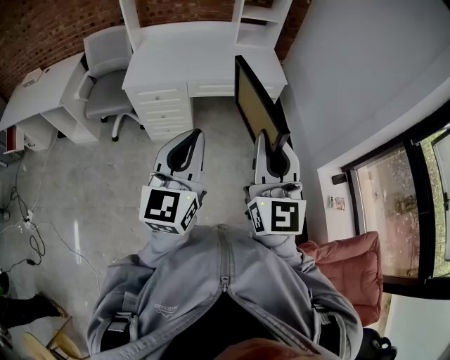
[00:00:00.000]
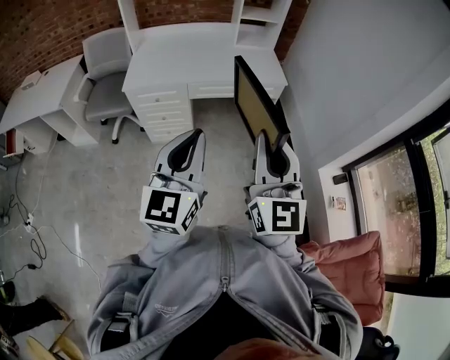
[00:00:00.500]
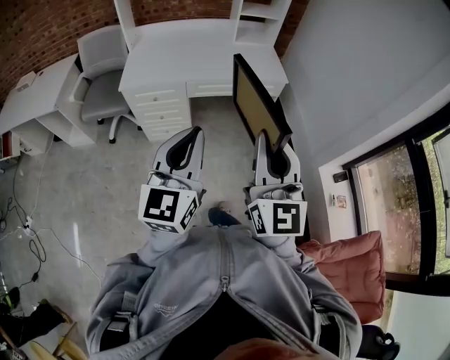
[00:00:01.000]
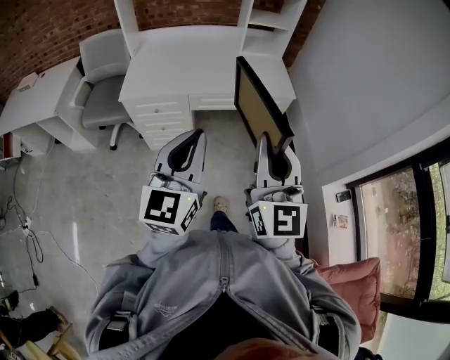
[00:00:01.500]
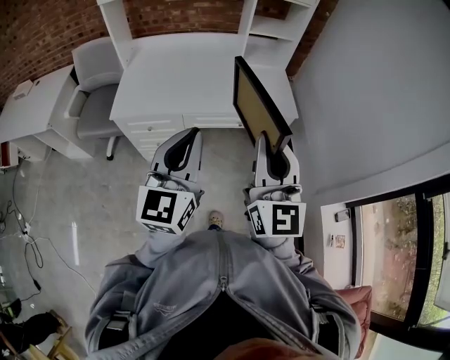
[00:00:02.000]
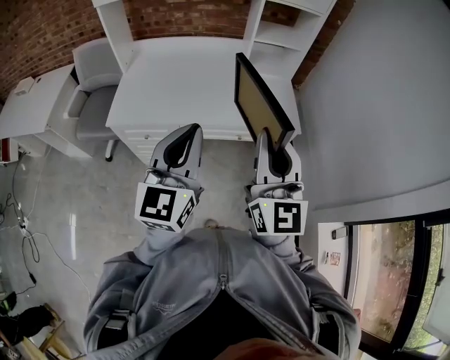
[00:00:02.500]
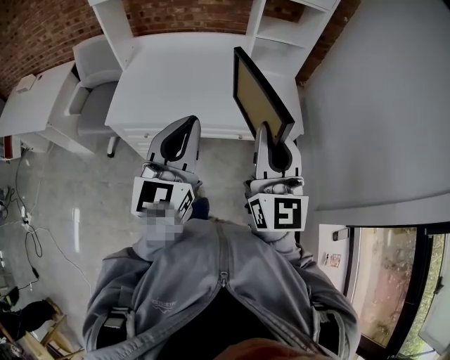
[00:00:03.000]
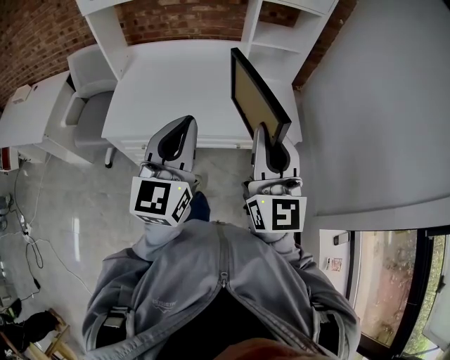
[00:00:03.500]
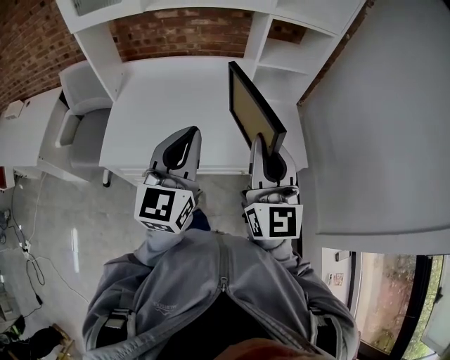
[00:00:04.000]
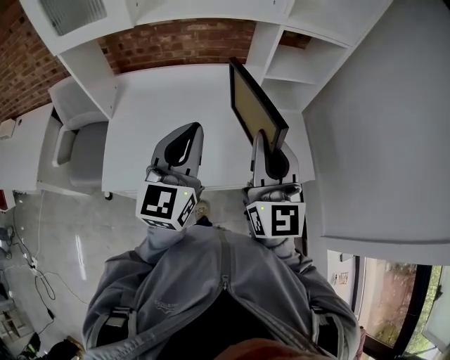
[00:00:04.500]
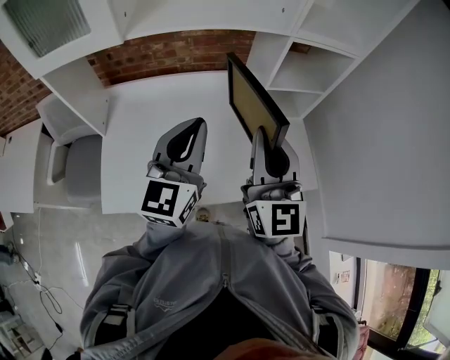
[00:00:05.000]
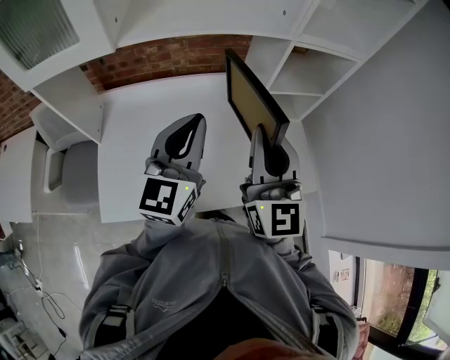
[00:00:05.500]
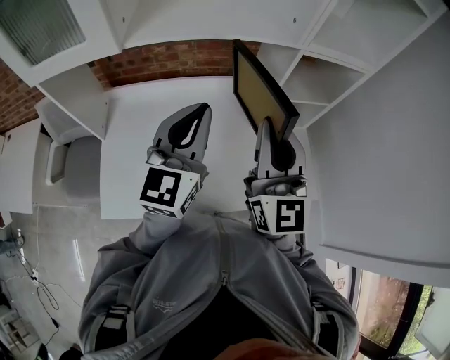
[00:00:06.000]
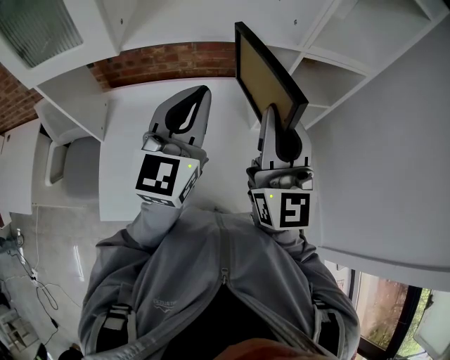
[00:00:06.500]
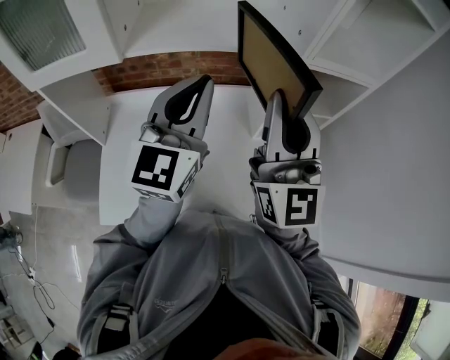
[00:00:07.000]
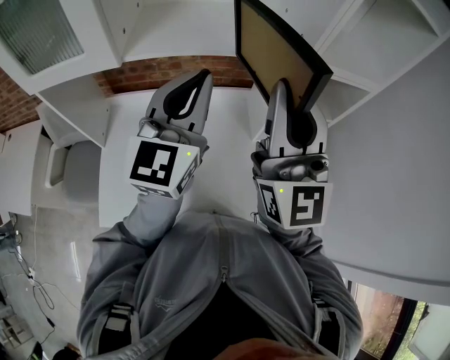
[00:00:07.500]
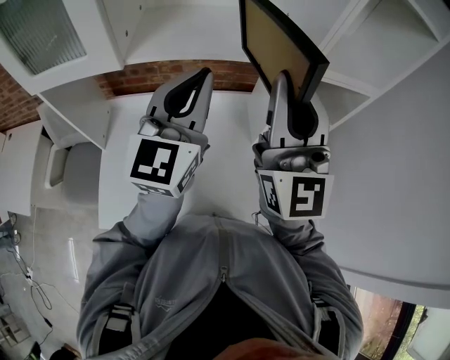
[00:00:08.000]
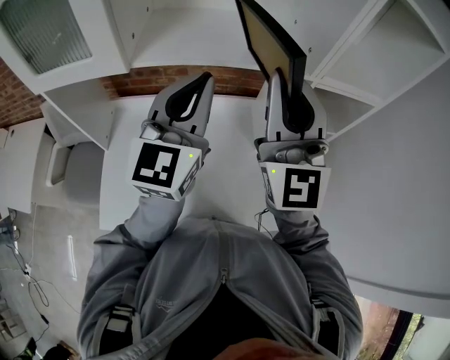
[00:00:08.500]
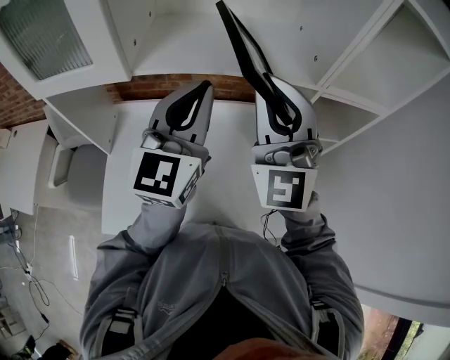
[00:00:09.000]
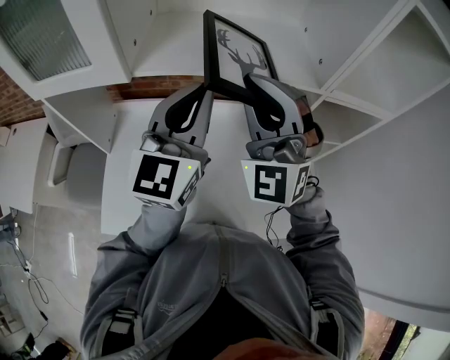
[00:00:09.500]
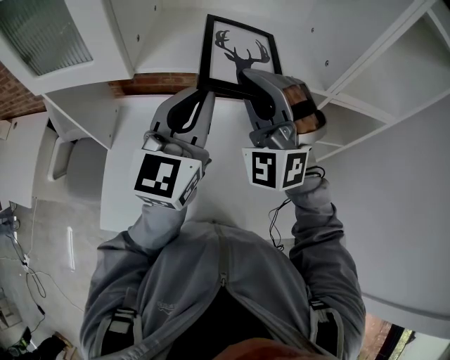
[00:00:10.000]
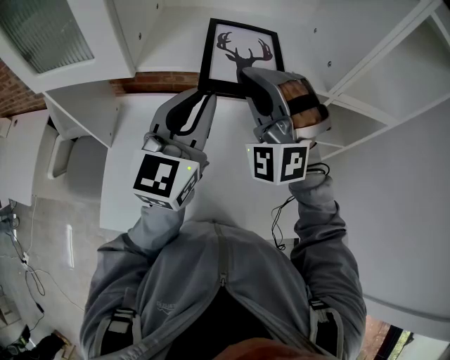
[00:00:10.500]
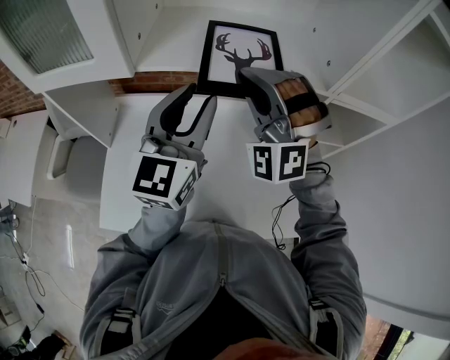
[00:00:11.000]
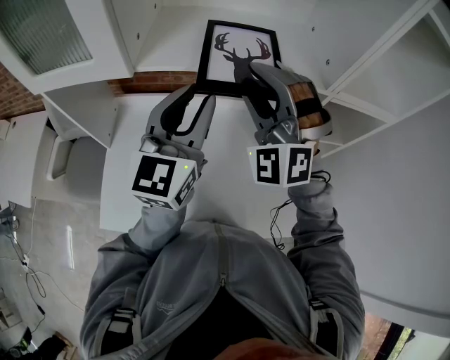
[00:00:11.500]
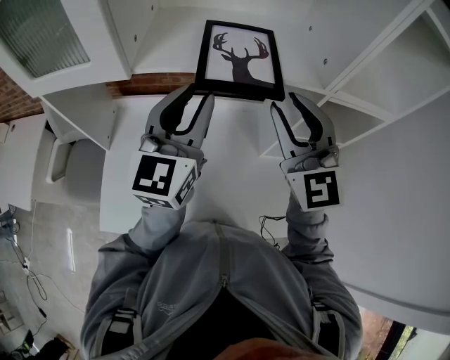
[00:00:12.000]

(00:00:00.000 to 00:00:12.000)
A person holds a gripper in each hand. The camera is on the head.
00:00:00.000 - 00:00:02.000: The grippers both shift forward by roughly 25 cm.
00:00:02.000 - 00:00:04.000: The two grippers go roughly 25 cm forward.
00:00:04.000 - 00:00:06.000: The grippers both shift forward by some 25 cm.
00:00:06.000 - 00:00:08.000: The grippers both shift upward and forward by roughly 10 cm.
00:00:08.000 - 00:00:10.000: The right gripper moves forward, downward and to the left, approximately 15 cm, and twists roughly 50 degrees counterclockwise, seen from behind, while the left gripper ends up approximately 5 cm from where it was.
00:00:10.000 - 00:00:12.000: The left gripper opens its fingers; the right gripper heads to the right, covering approximately 5 cm, twists approximately 50 degrees clockwise, seen from behind, and opens up.

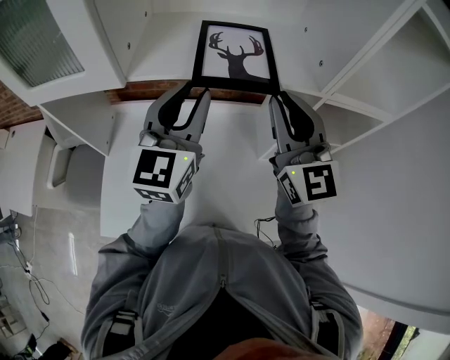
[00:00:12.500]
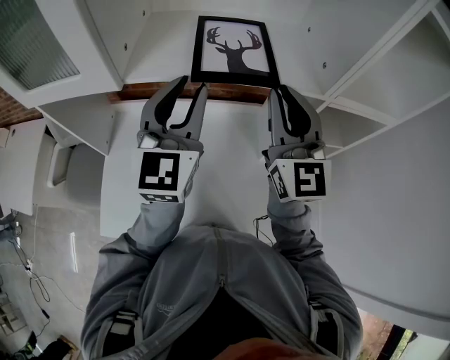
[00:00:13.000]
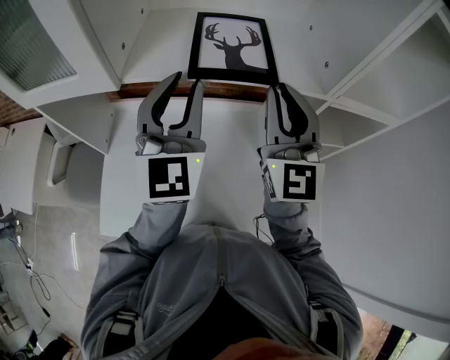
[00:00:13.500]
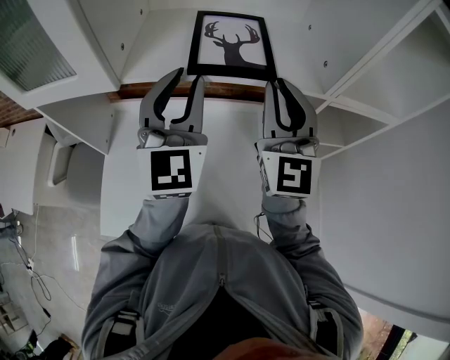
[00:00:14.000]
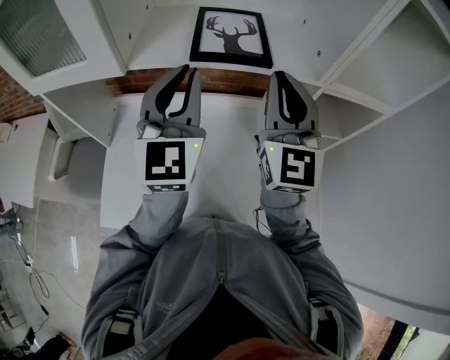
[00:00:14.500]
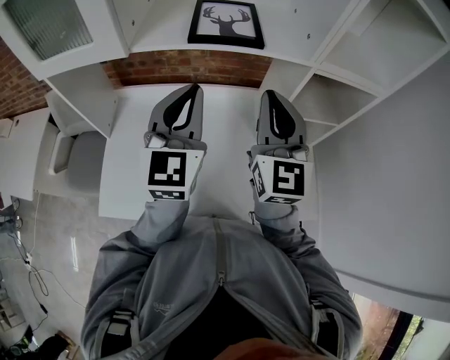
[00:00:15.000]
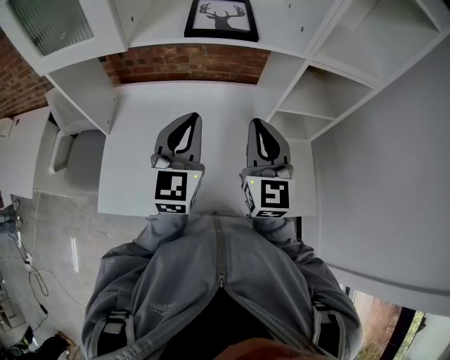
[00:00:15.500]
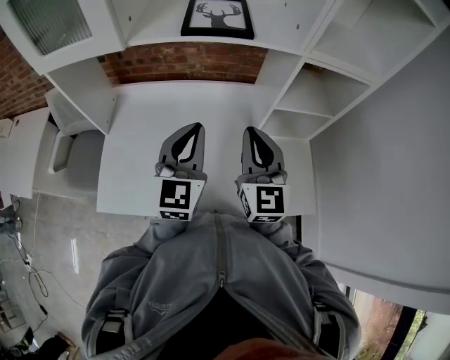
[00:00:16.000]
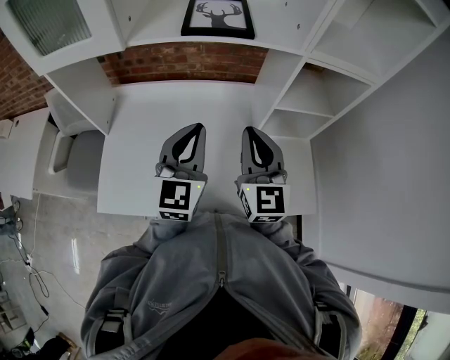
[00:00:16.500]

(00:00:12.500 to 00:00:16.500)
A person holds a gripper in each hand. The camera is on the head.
00:00:12.500 - 00:00:14.500: The grippers make only small movements.
00:00:14.500 - 00:00:16.500: Both grippers travel together downward and backward, approximately 20 cm.

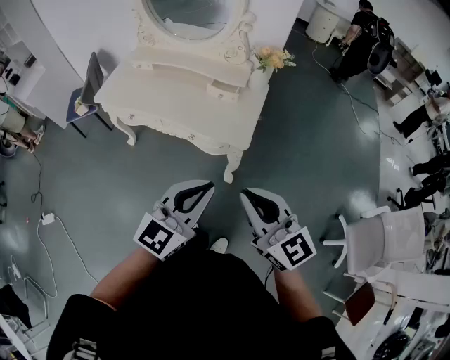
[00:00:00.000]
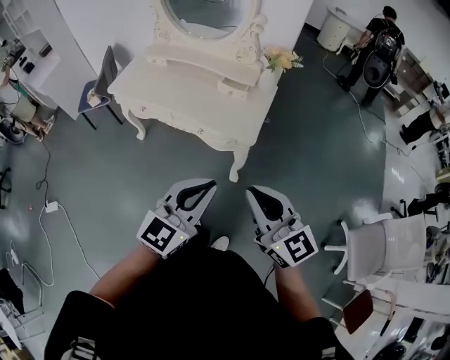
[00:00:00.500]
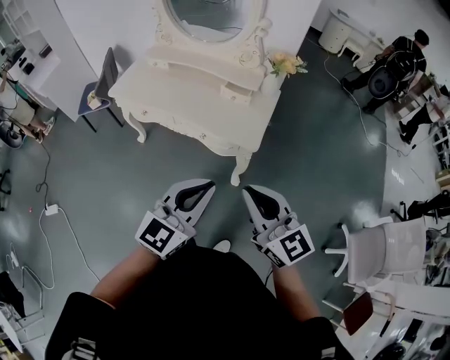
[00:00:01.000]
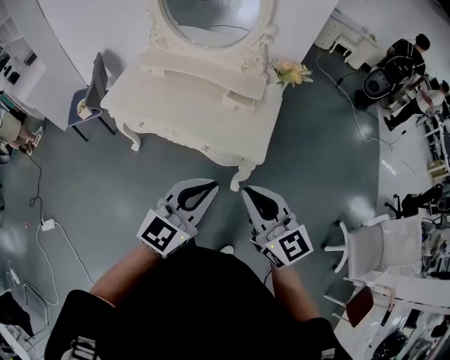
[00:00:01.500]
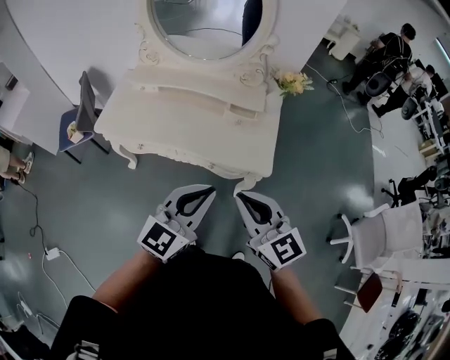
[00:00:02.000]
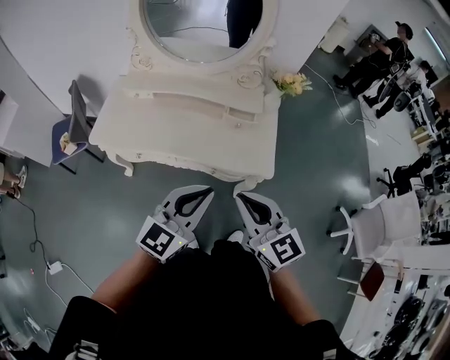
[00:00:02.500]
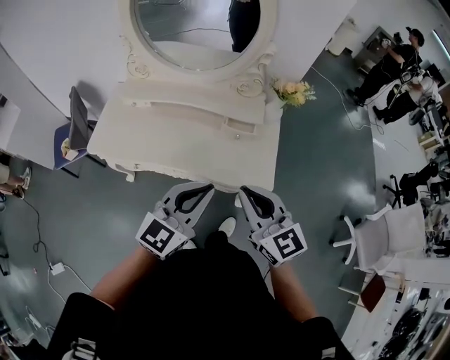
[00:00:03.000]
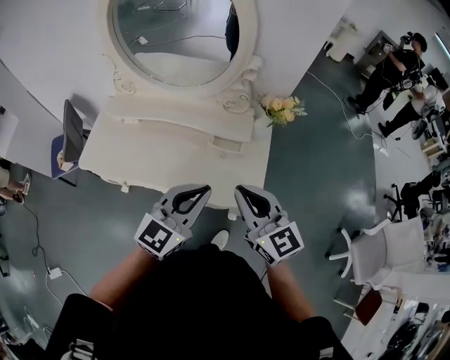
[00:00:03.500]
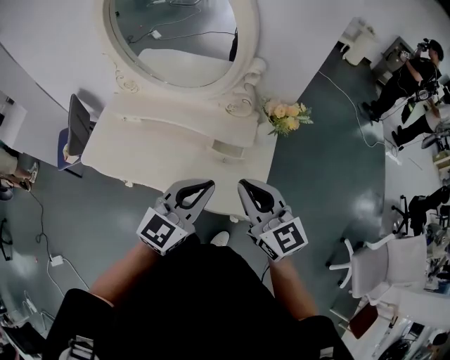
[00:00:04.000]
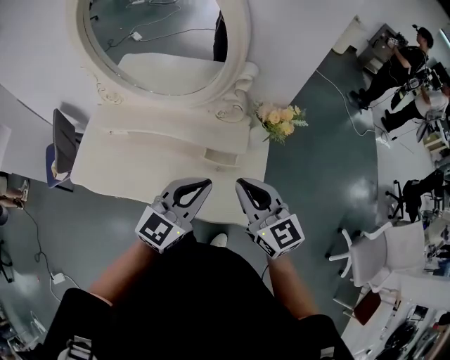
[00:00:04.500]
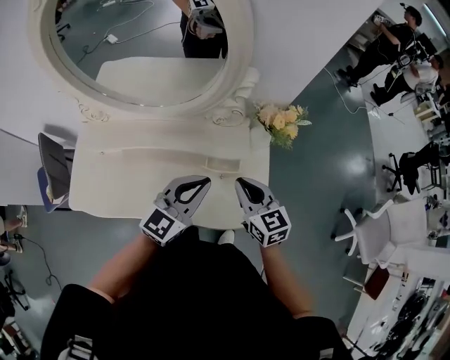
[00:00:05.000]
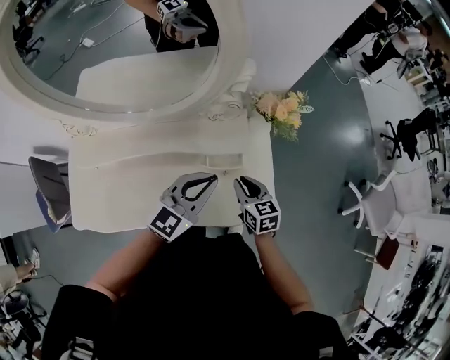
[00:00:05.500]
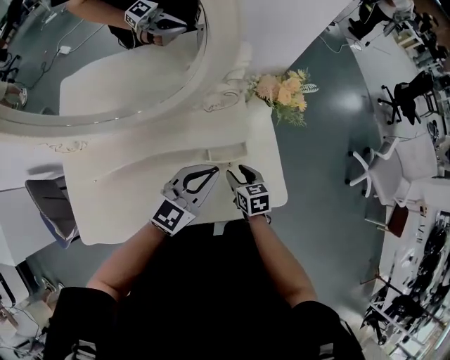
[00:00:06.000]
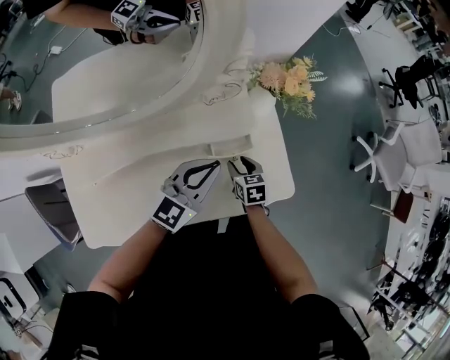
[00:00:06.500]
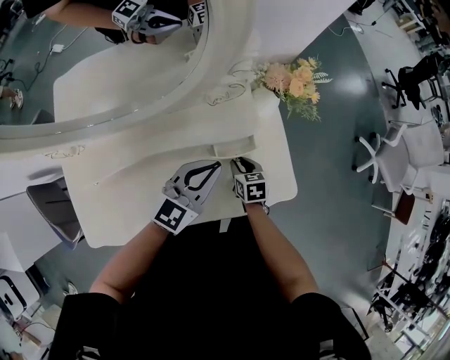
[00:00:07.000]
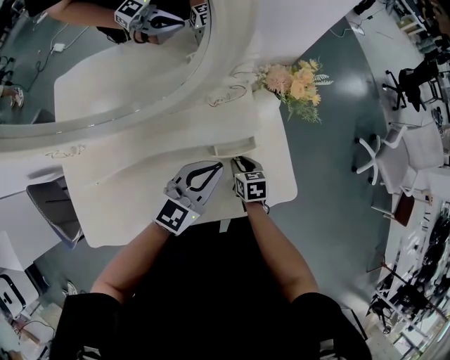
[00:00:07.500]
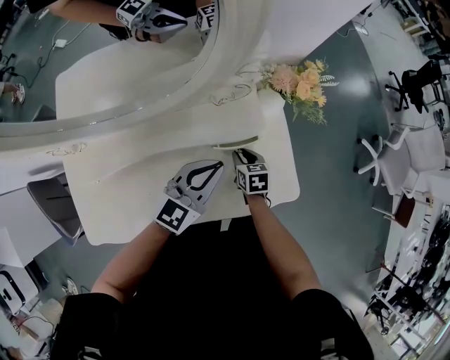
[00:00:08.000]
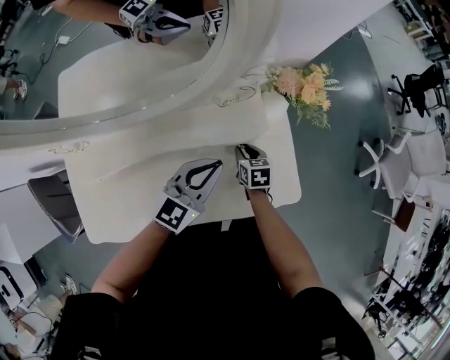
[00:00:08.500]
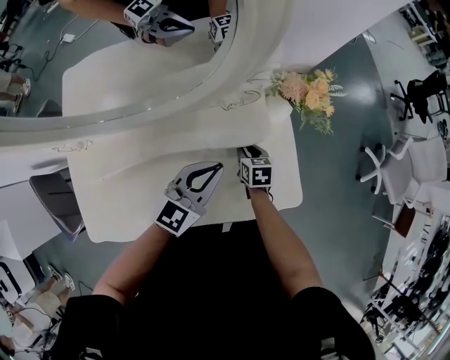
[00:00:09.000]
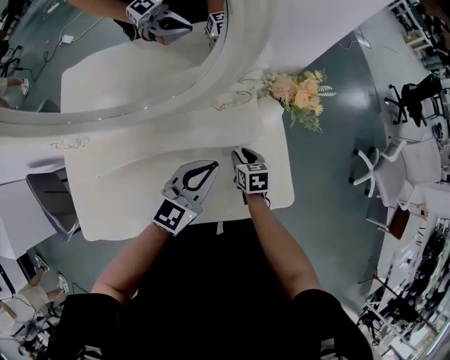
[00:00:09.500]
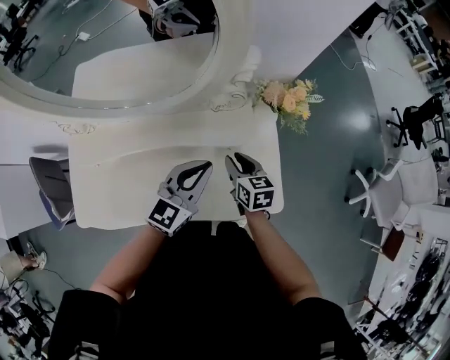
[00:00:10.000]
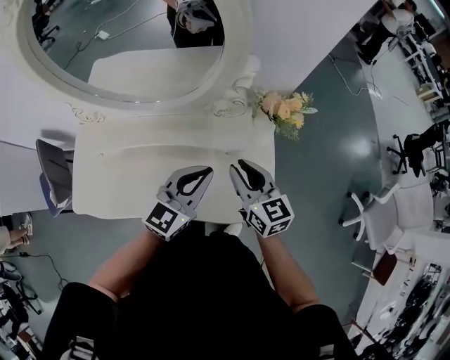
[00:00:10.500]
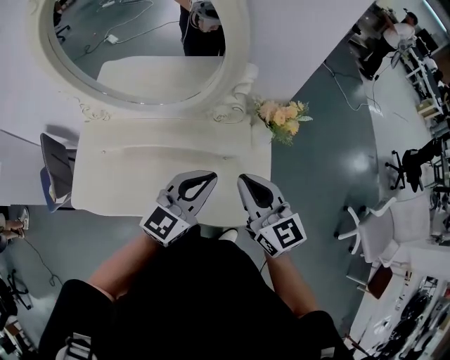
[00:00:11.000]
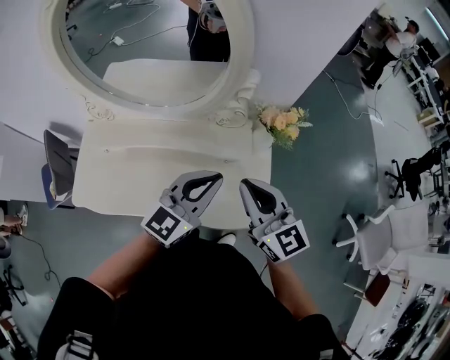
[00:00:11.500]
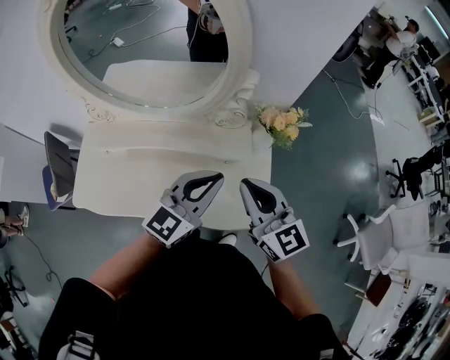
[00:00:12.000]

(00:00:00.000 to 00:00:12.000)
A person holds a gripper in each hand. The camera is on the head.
00:00:00.000 - 00:00:02.000: Both grippers travel together to the left and forward, approximately 20 cm.
00:00:02.000 - 00:00:04.000: Both grippers travel together forward, some 25 cm.
00:00:04.000 - 00:00:06.000: The right gripper goes roughly 35 cm downward, points its fingers some 40 degrees further downward, and opens up. The left gripper changes place by about 25 cm, and turns by roughly 30 degrees.
00:00:06.000 - 00:00:08.000: The right gripper is displaced downward by about 5 cm.
00:00:08.000 - 00:00:10.000: The right gripper travels upward by some 15 cm.
00:00:10.000 - 00:00:12.000: The right gripper is displaced upward by some 25 cm, tilts its fingers some 30 degrees upward, and closes its fingers, while the left gripper travels upward and backward by roughly 15 cm.
